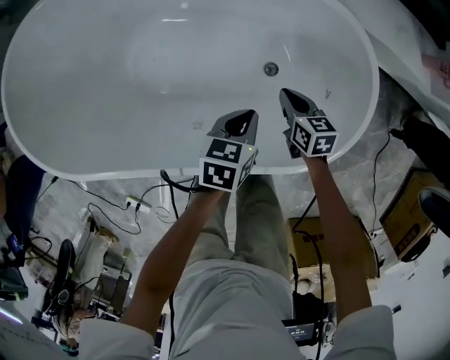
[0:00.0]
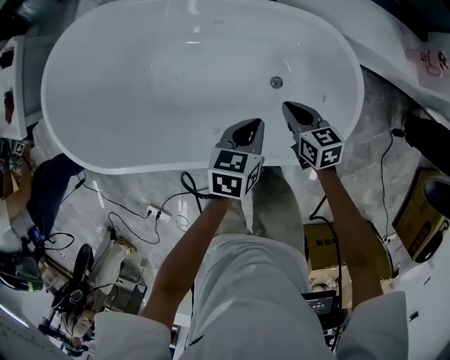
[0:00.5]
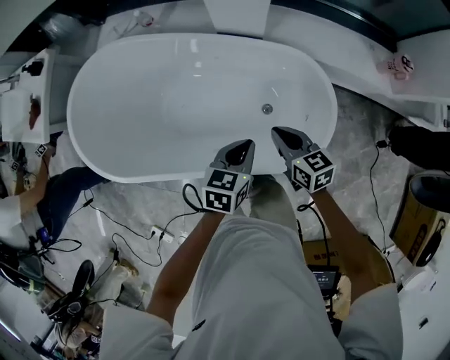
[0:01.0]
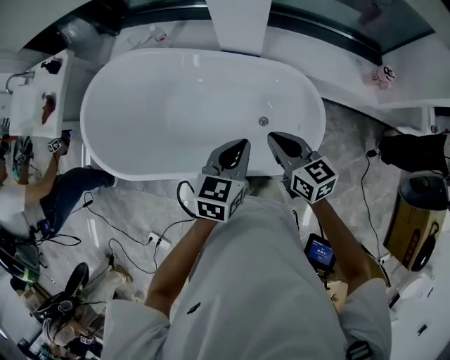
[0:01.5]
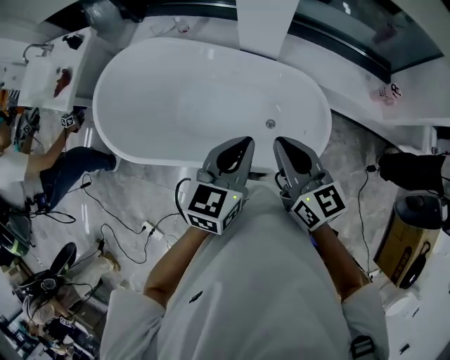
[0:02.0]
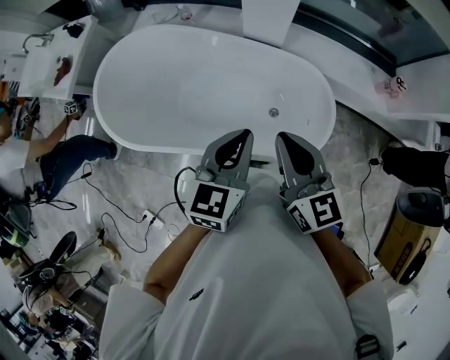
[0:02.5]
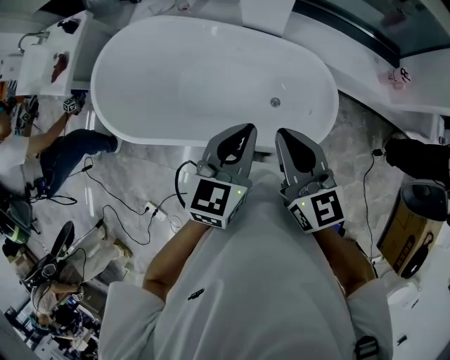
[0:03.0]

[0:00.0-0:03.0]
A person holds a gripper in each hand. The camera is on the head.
0.0 to 1.5 s: Both grippers travel together upward, roughly 40 cm. The right gripper changes its angle by approximately 30 degrees, while the left gripper rotates about 30 degrees.
1.5 to 3.0 s: Both grippers move upward and backward, roughly 15 cm.

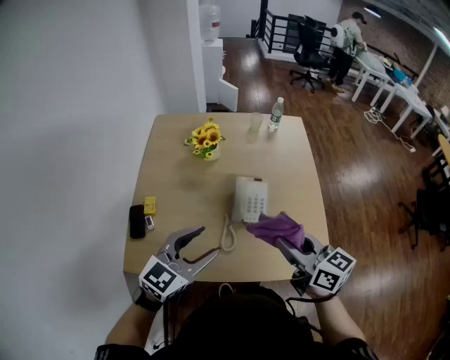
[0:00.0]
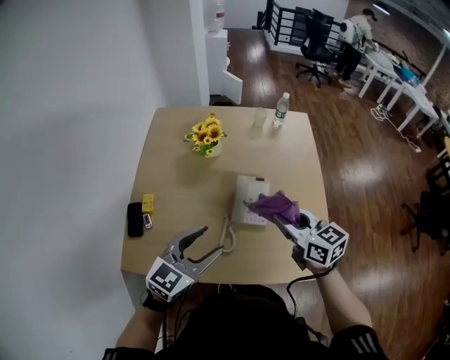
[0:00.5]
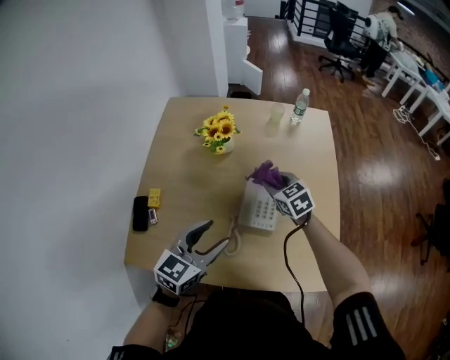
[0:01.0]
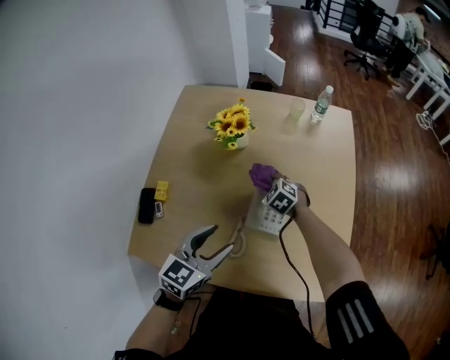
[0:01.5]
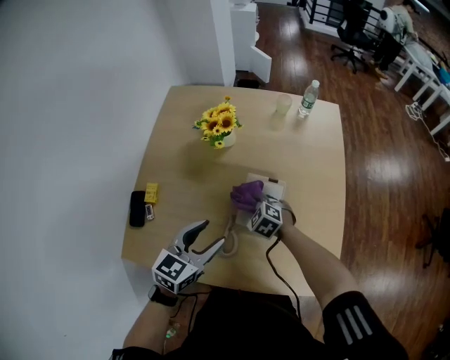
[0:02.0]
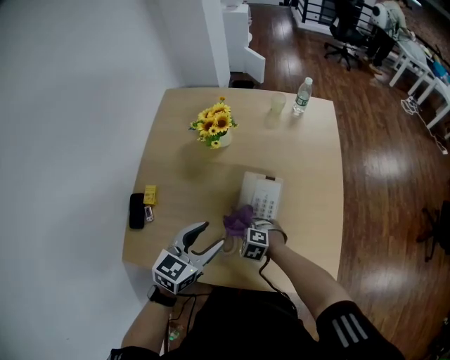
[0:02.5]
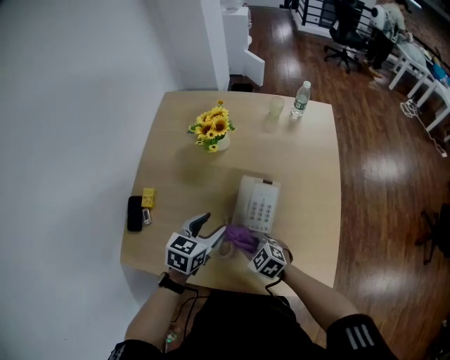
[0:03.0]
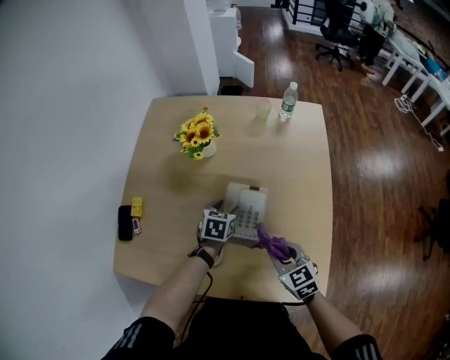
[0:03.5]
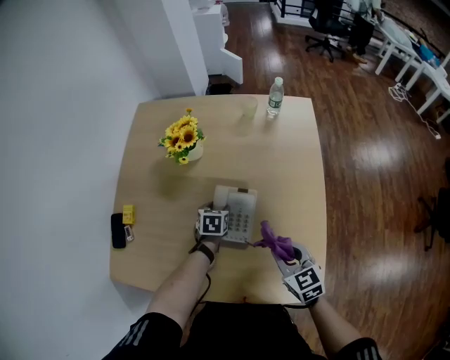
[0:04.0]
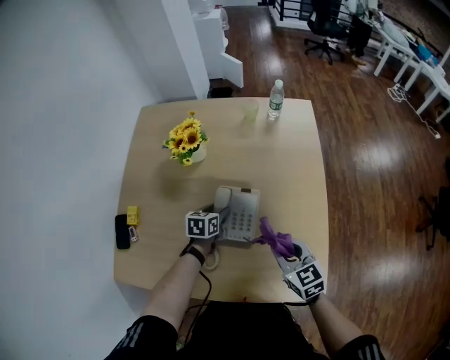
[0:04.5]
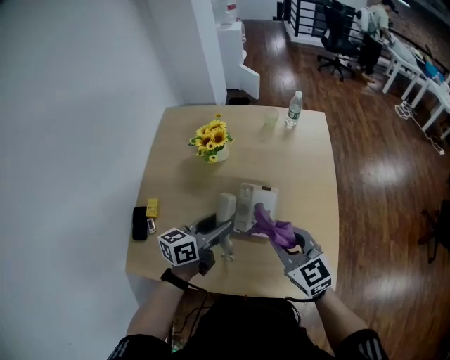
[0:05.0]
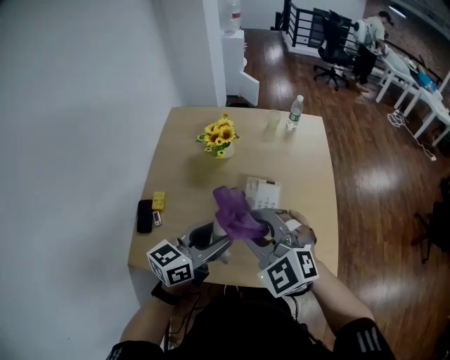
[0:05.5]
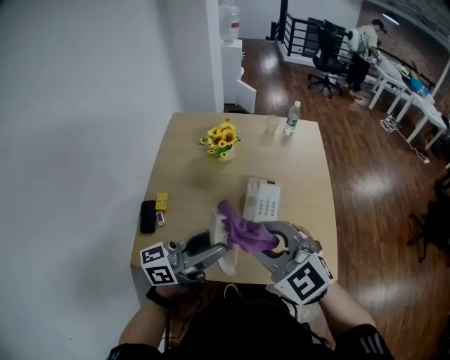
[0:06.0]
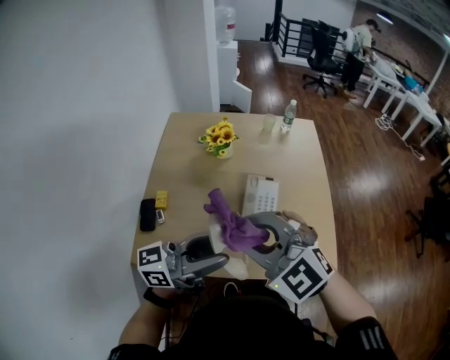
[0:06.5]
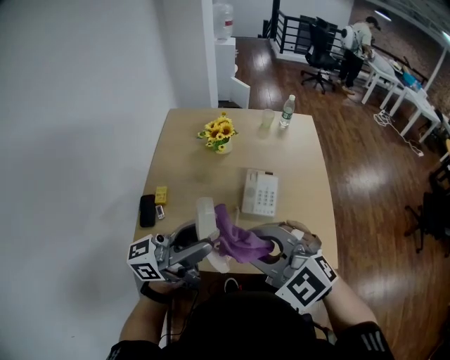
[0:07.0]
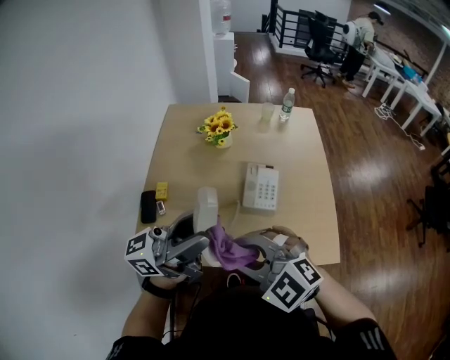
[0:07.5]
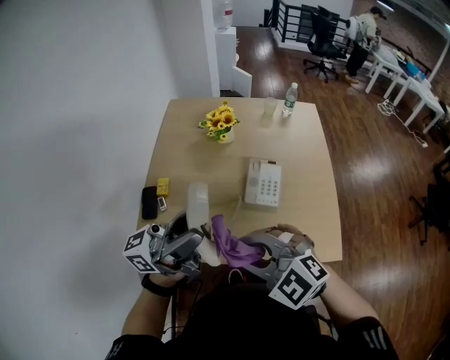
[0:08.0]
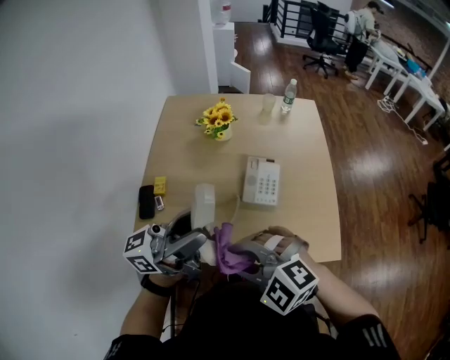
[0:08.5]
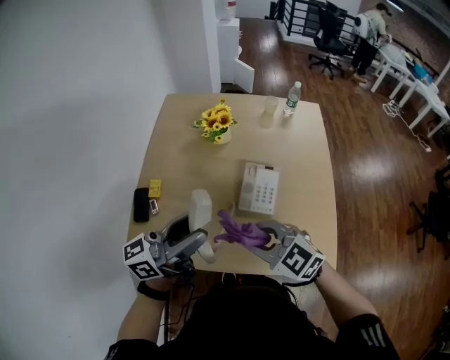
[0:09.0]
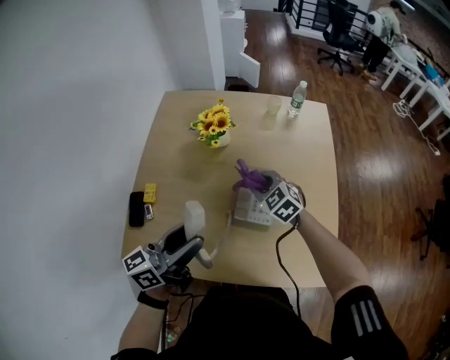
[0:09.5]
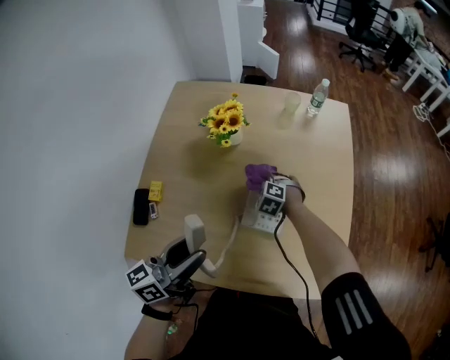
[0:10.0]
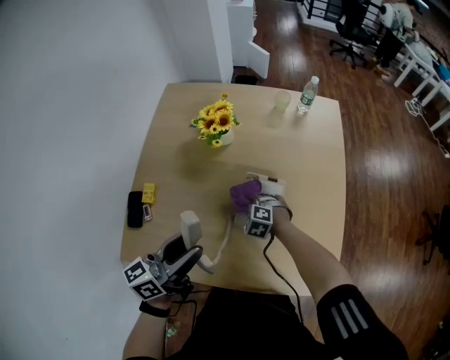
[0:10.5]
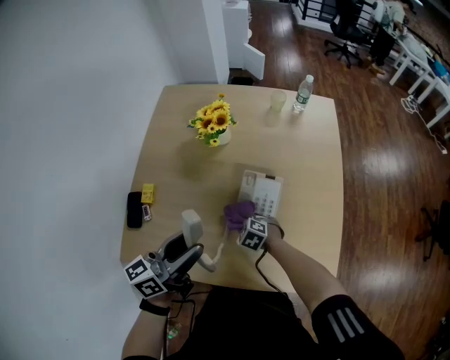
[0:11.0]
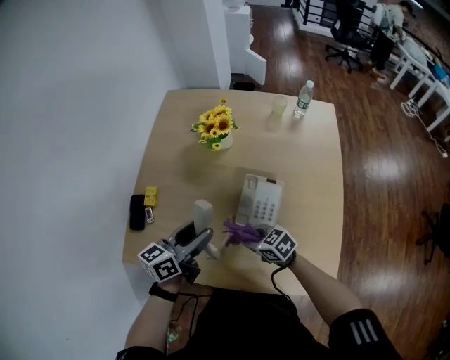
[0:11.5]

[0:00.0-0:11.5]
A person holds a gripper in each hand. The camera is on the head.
0.0 to 2.0 s: The right gripper shifts approximately 35 cm downward and forward, and tips its fingers downward by roughly 50 degrees, while the left gripper shifts approximately 15 cm forward and downward, and swivels some 20 degrees.
2.0 to 4.0 s: The left gripper shifts approximately 30 cm downward, forward and to the right, and tips its fingers downward by approximately 30 degrees; the right gripper moves to the right, backward and upward, approximately 25 cm, and rotates about 40 degrees.
4.0 to 6.0 s: The left gripper heads upward and backward, covering roughly 50 cm, and angles its fingers upward, by roughly 70 degrees, while the right gripper moves upward, to the left and backward, some 40 cm, and changes its angle by roughly 40 degrees.
6.0 to 7.5 s: The left gripper travels upward by approximately 10 cm, and changes its angle by roughly 20 degrees. Meanwhile the right gripper changes place by about 10 cm.
7.5 to 9.5 s: The left gripper heads downward, covering some 15 cm, and swivels some 30 degrees. Meanwhile the right gripper ends up roughly 40 cm from where it was, and swivels some 30 degrees.
9.5 to 11.5 s: The left gripper moves downward and forward, some 10 cm, while the right gripper heads backward and downward, covering approximately 15 cm, and rotates approximately 40 degrees.

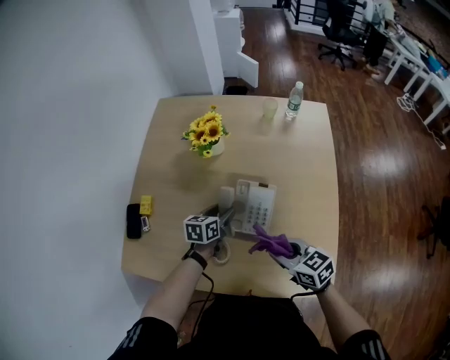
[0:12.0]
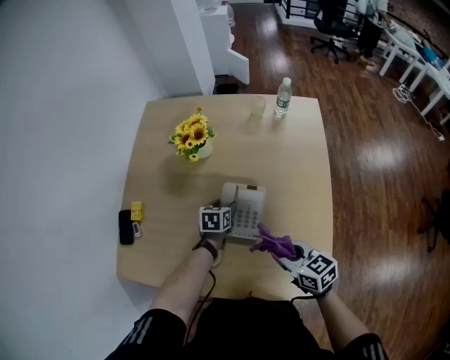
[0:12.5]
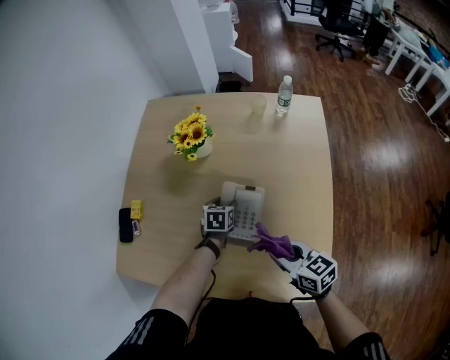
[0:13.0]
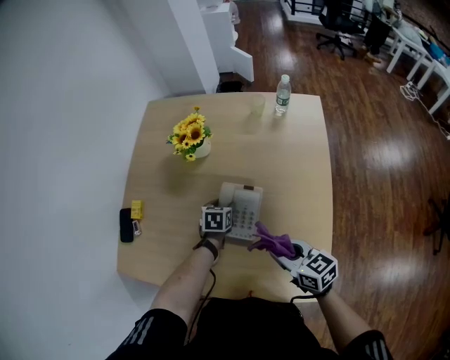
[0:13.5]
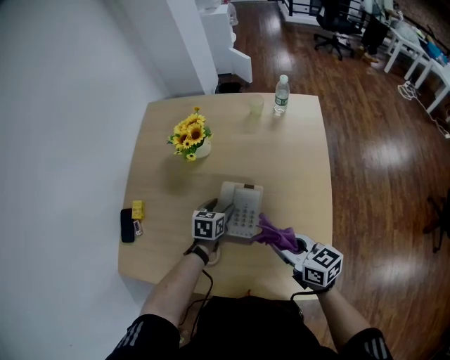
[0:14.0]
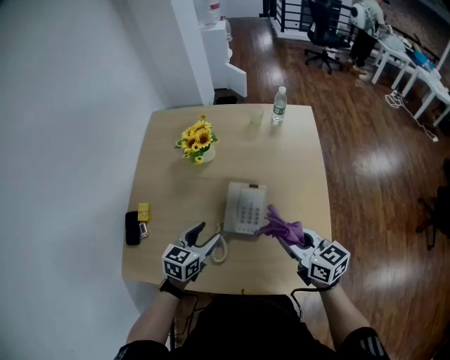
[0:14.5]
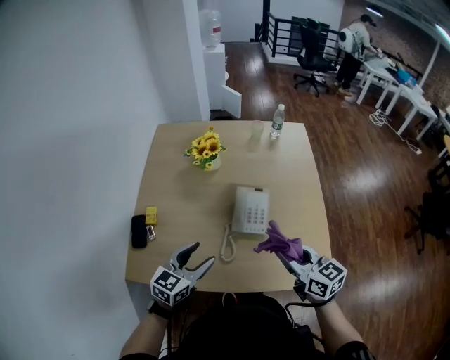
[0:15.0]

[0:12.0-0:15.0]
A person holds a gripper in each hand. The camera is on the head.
12.0 to 13.5 s: The right gripper travels to the right by some 5 cm, while the left gripper travels downward and to the right by about 10 cm, and turns by roughly 20 degrees.
13.5 to 15.0 s: The right gripper moves upward, backward and to the left, approximately 15 cm. Meanwhile the left gripper moves backward, upward and to the left, roughly 35 cm, and tips its fingers upward by some 30 degrees.

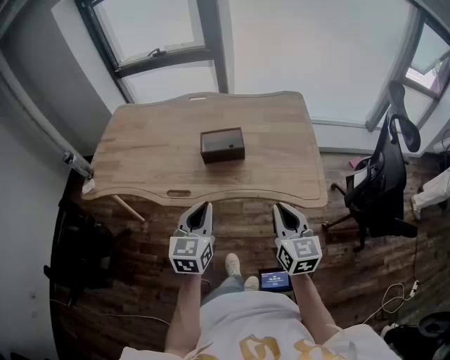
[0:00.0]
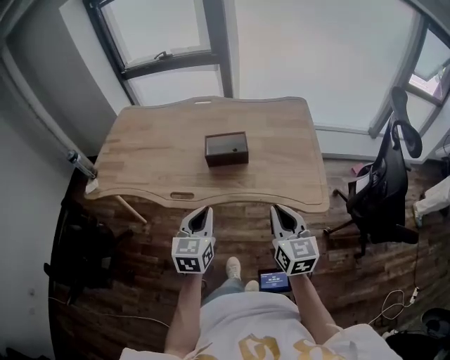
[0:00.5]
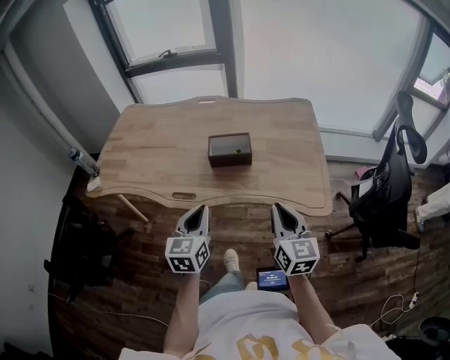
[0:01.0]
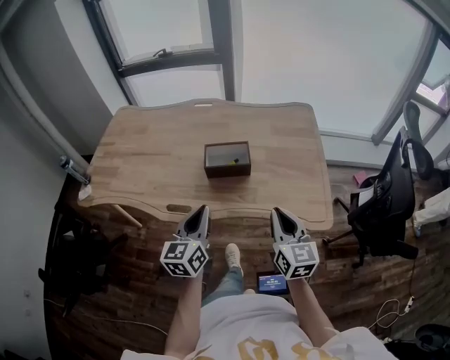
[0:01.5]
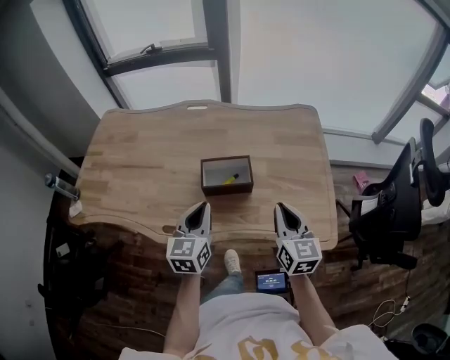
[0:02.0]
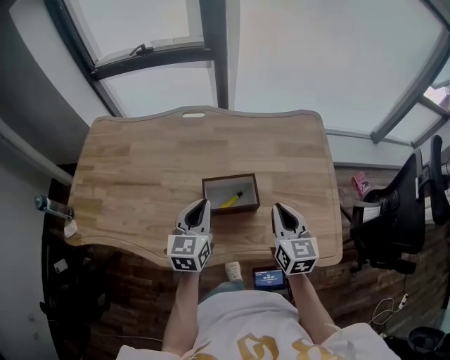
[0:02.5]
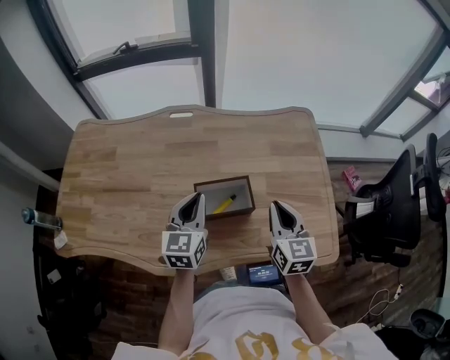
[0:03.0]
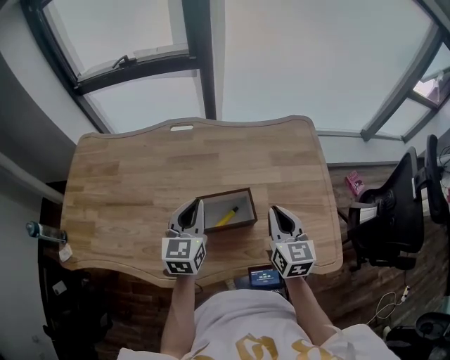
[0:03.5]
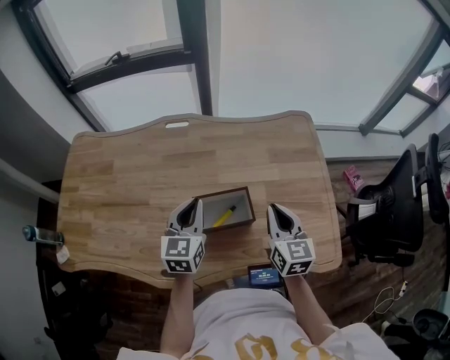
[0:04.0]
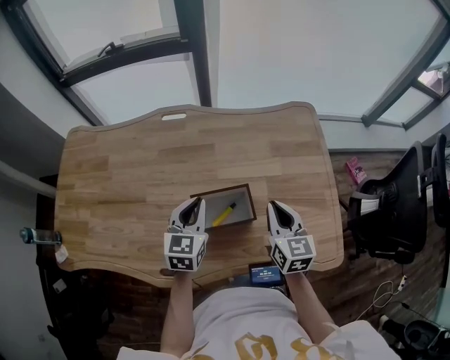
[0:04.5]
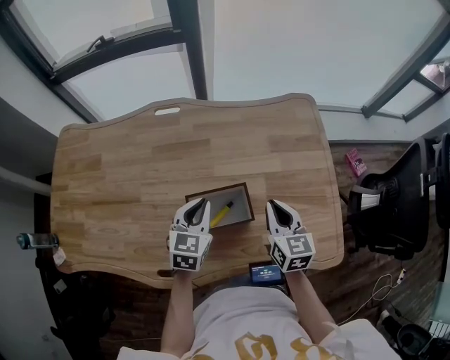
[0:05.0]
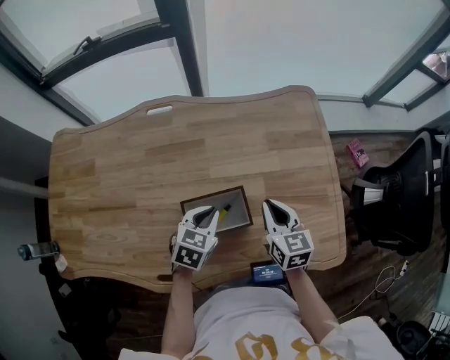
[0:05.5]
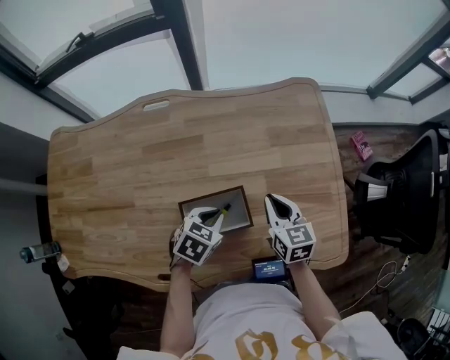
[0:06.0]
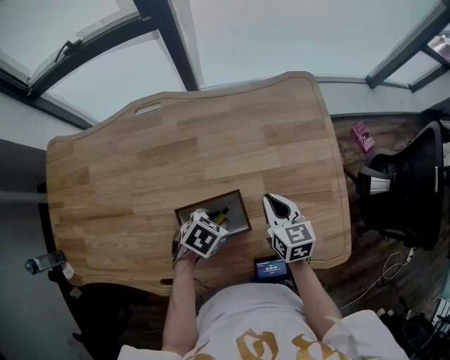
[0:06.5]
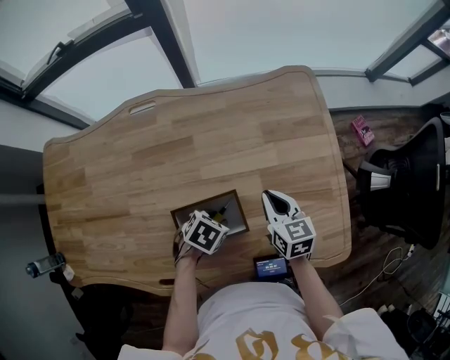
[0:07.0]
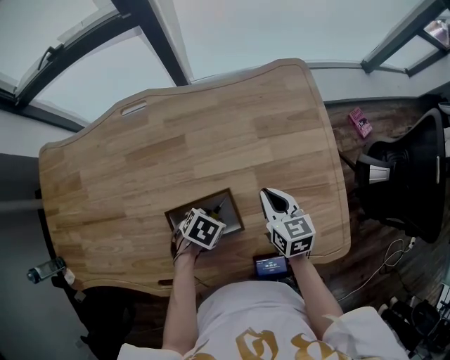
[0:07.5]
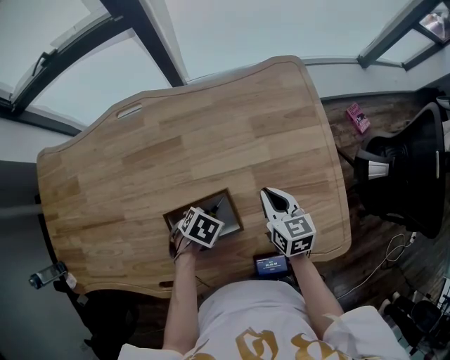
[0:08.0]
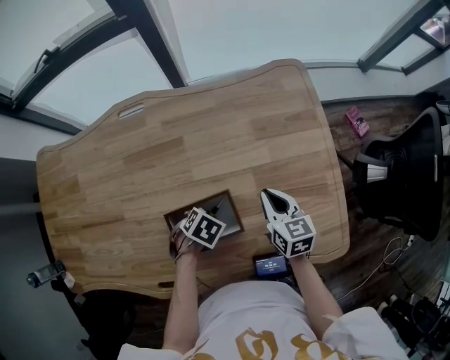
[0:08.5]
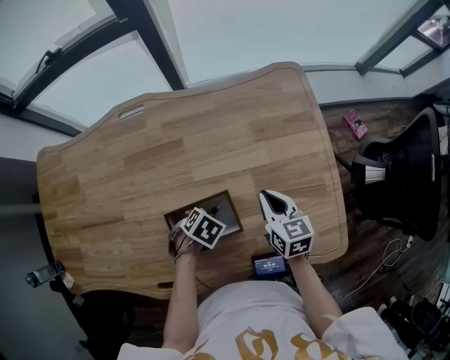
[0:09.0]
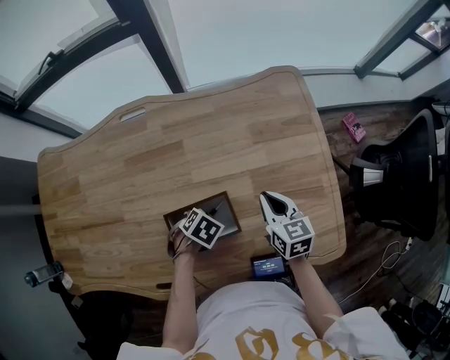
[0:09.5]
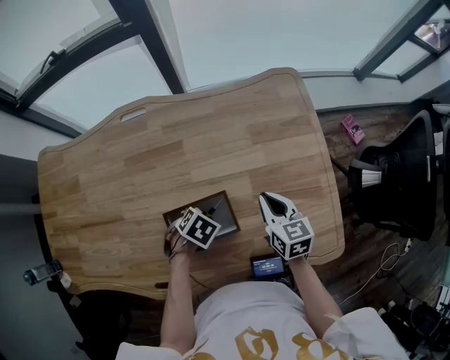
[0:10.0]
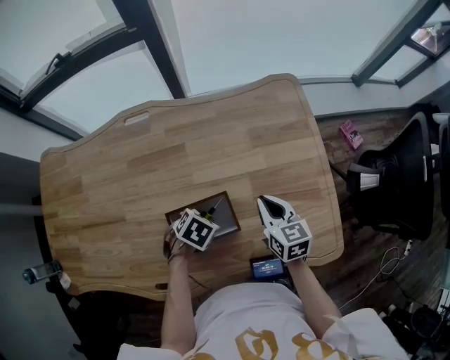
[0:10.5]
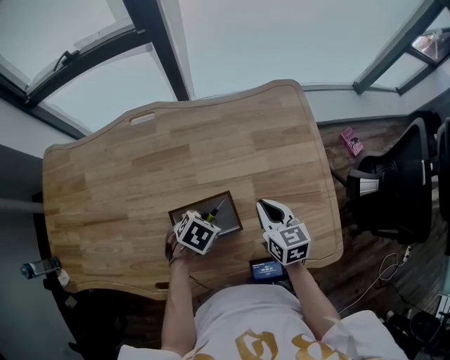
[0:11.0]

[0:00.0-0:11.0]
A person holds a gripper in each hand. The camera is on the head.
0.0 to 2.0 s: Both grippers move forward, roughly 20 cm.
2.0 to 3.5 s: The two grippers go roughly 15 cm forward.
3.5 to 5.5 s: The left gripper goes some 15 cm downward and to the right, and tilts its fingers about 30 degrees downward. Meanwhile the right gripper shifts about 10 cm downward and forward.
5.5 to 7.5 s: The right gripper shifts approximately 5 cm downward, while the left gripper moves downward, roughly 10 cm, changes its angle by roughly 40 degrees, and opens up.
7.5 to 9.0 s: The left gripper closes.
9.0 to 11.0 s: The left gripper is displaced upward by some 5 cm.
